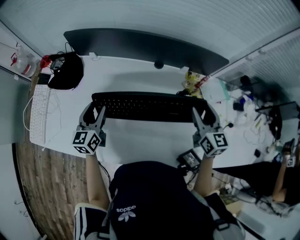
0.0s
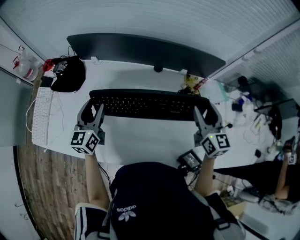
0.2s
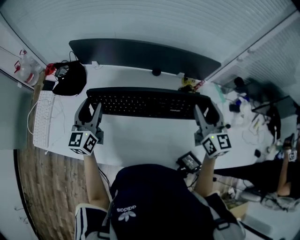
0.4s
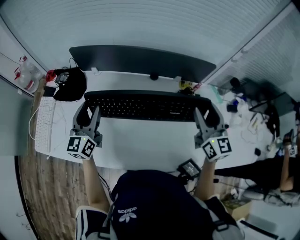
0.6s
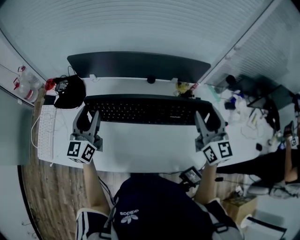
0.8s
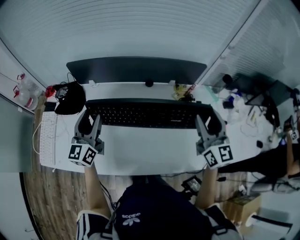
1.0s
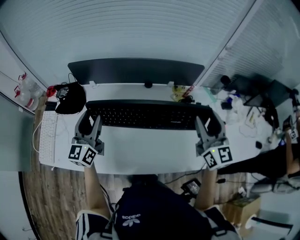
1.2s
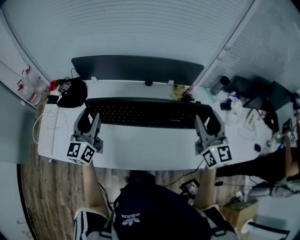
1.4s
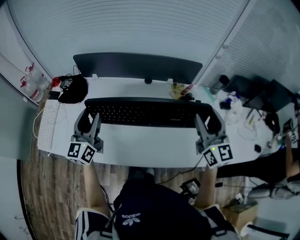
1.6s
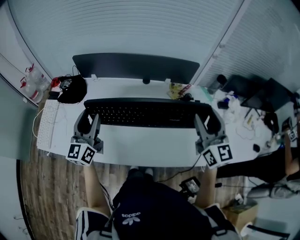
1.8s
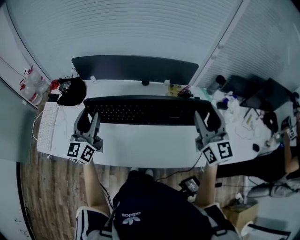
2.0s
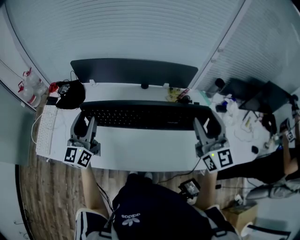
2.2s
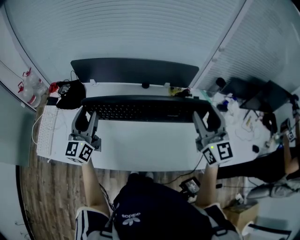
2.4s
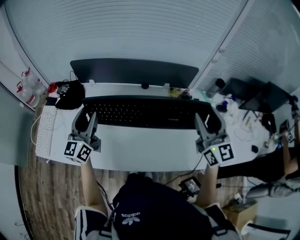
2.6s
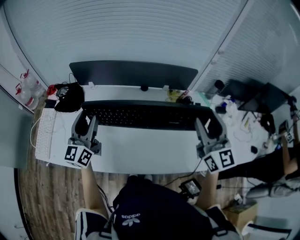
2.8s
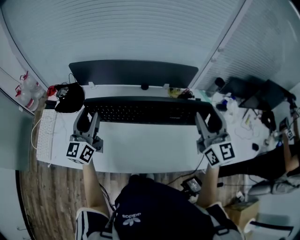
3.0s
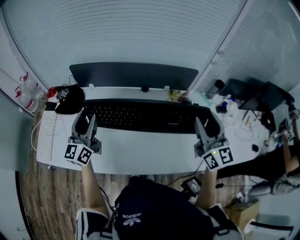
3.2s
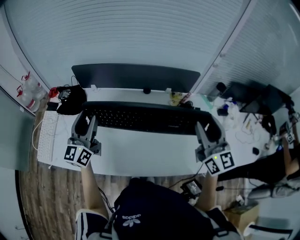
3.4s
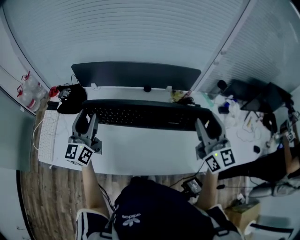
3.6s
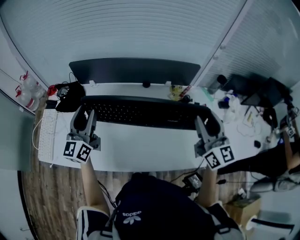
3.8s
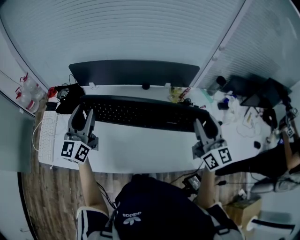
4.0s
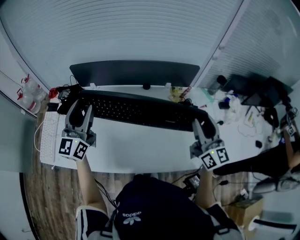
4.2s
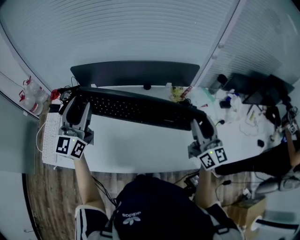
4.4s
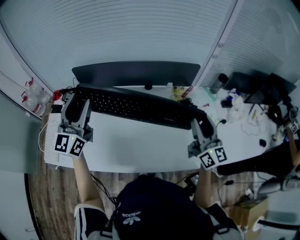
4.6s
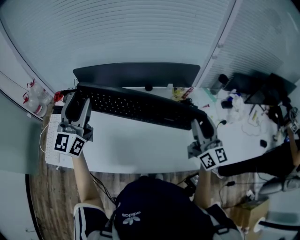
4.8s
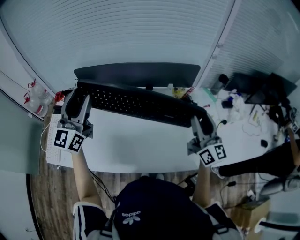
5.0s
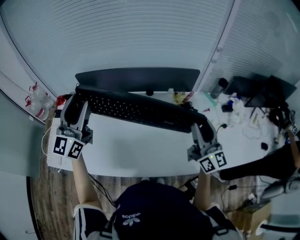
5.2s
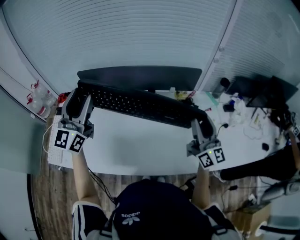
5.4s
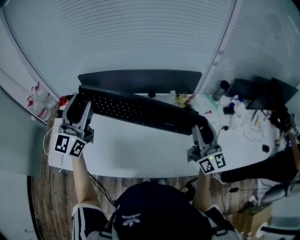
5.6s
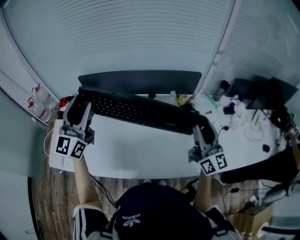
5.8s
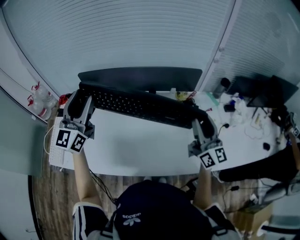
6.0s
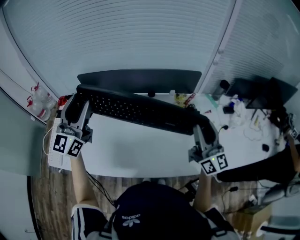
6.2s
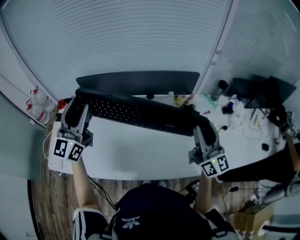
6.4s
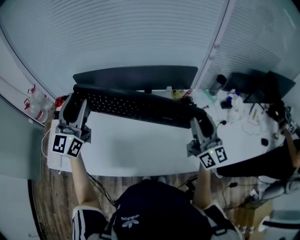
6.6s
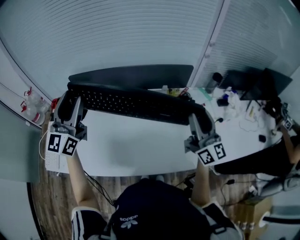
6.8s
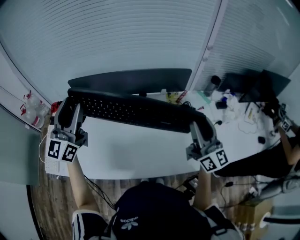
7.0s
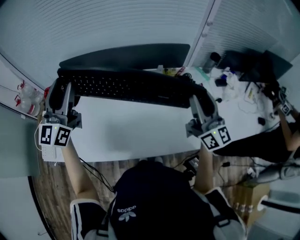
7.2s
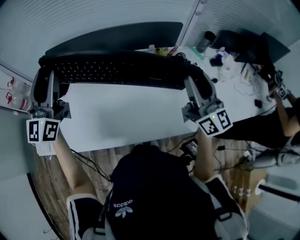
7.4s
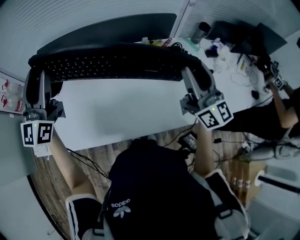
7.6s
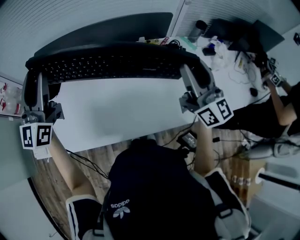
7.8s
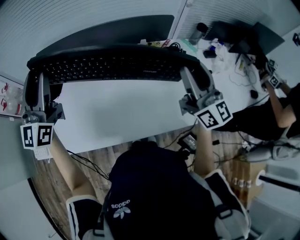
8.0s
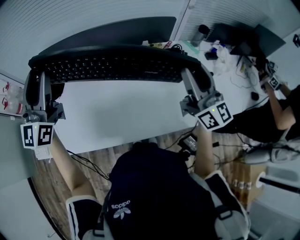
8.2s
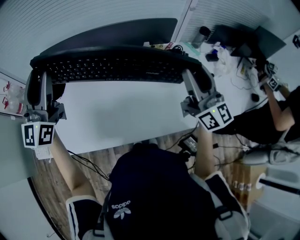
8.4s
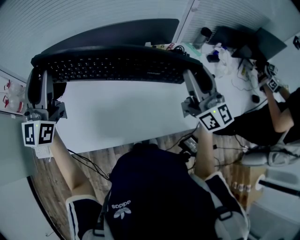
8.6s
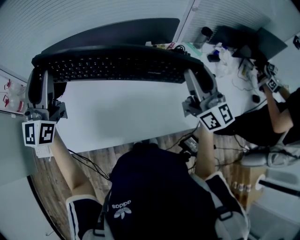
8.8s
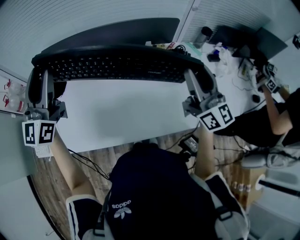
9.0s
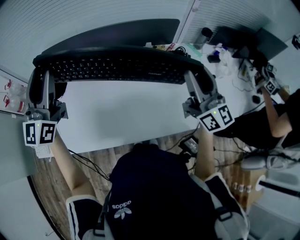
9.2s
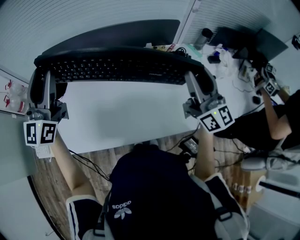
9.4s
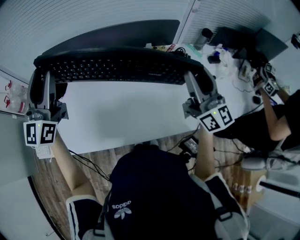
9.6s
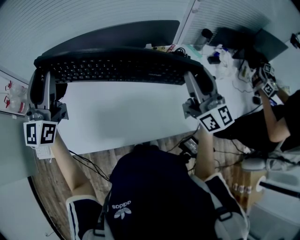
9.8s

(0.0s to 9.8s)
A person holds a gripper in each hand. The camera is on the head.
0.0s - 1.4s: The right gripper heads upward and backward, covering approximately 20 cm, and turns by approximately 20 degrees. Meanwhile the left gripper is displaced upward by about 15 cm, and swivels about 20 degrees.
1.4s - 2.8s: The grippers make only small movements.
2.8s - 4.2s: The left gripper travels upward by approximately 5 cm.
4.2s - 5.6s: The left gripper shifts about 10 cm upward.
5.6s - 8.4s: There are only small adjustments of the grippers.
8.4s - 9.8s: Both grippers stay put.

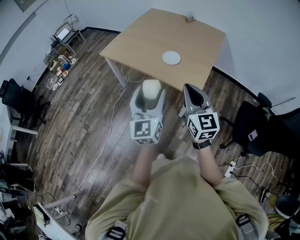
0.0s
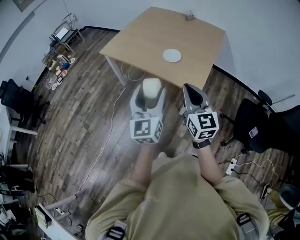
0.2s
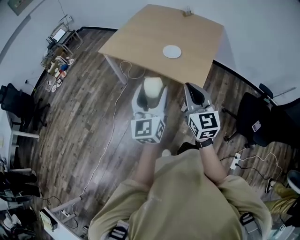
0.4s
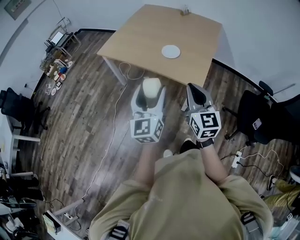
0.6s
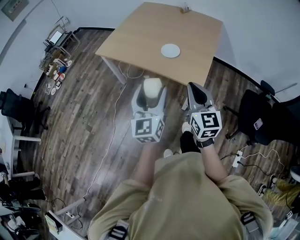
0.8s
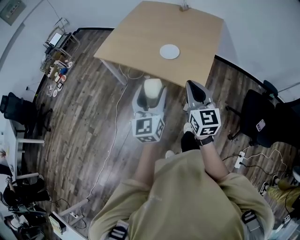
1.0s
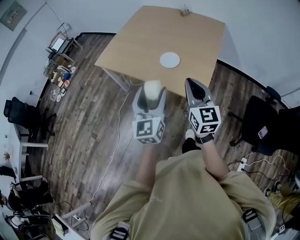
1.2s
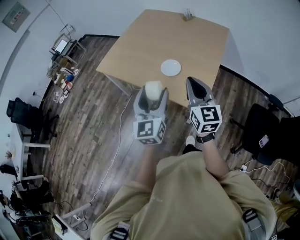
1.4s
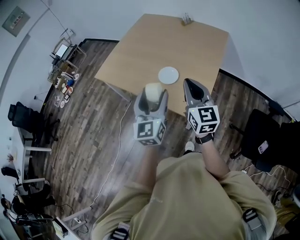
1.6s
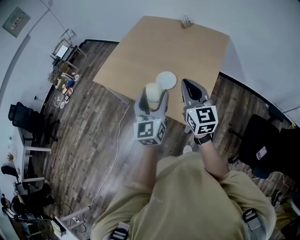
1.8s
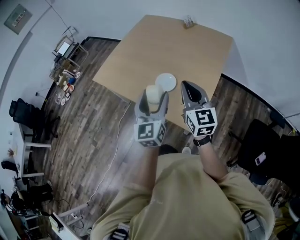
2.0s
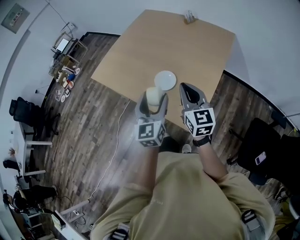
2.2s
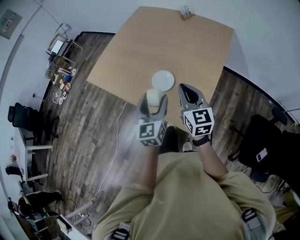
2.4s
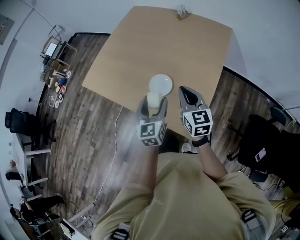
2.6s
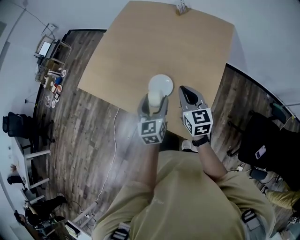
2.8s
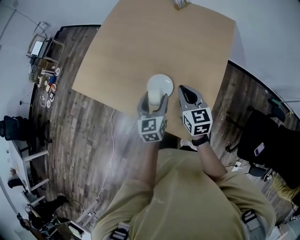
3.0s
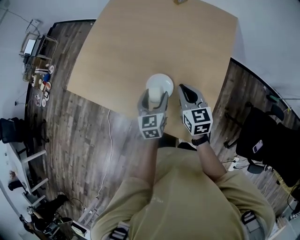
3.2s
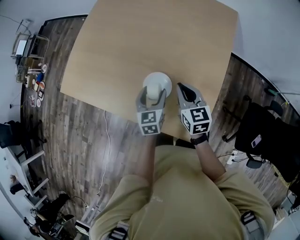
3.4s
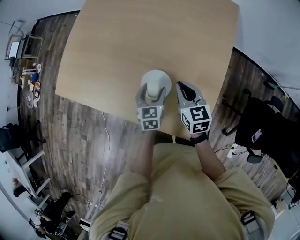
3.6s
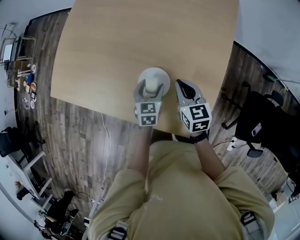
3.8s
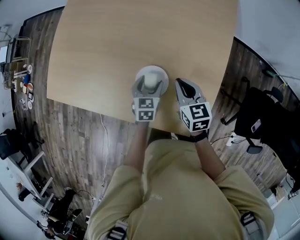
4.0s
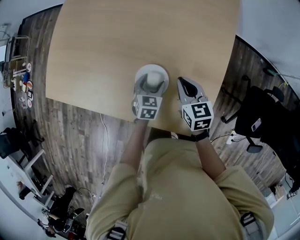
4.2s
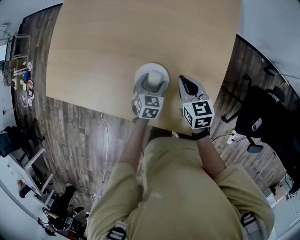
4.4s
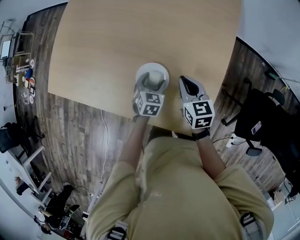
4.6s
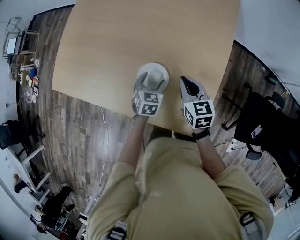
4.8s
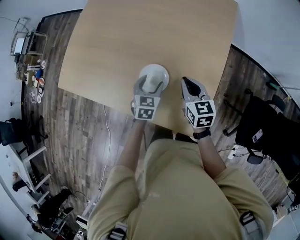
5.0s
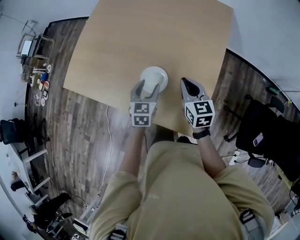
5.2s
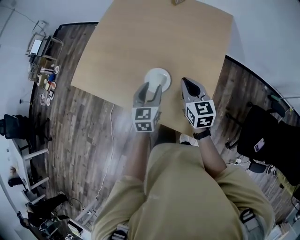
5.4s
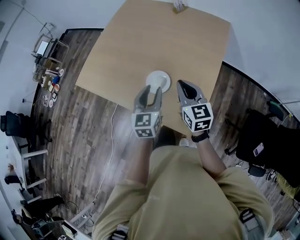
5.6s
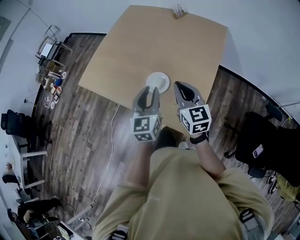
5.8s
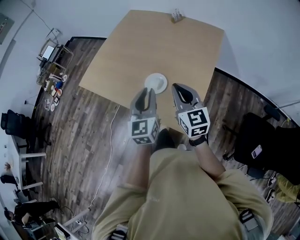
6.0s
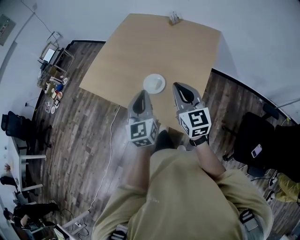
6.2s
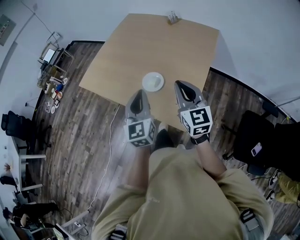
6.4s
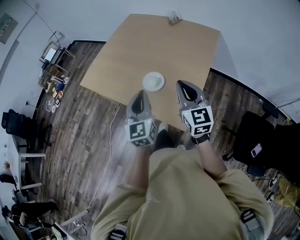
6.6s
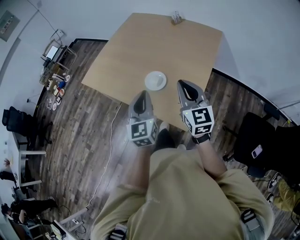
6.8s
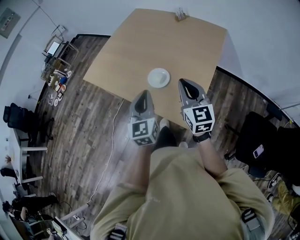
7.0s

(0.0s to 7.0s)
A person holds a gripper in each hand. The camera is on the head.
0.0s - 1.4s: The left gripper is displaced forward and to the right by about 20 cm; the right gripper moves forward, some 20 cm.
1.4s - 2.8s: The two grippers go approximately 30 cm forward and downward. The left gripper rotates approximately 20 degrees.
2.8s - 4.2s: The grippers both shift downward and forward by roughly 25 cm. The left gripper swivels some 40 degrees. Meanwhile the right gripper rotates roughly 20 degrees.
4.2s - 5.6s: Both grippers move upward and backward, roughly 25 cm. The right gripper swivels roughly 30 degrees; the left gripper angles its fingers upward, by some 30 degrees, and closes its fingers.
5.6s - 7.0s: The grippers both shift backward and upward by roughly 15 cm. The left gripper closes up.

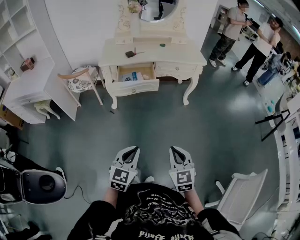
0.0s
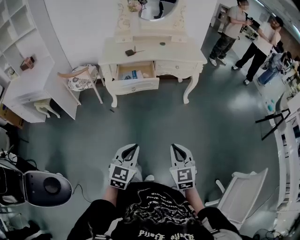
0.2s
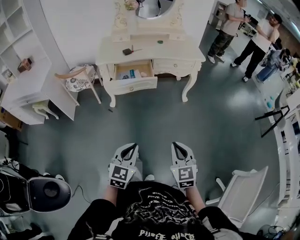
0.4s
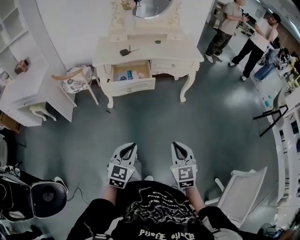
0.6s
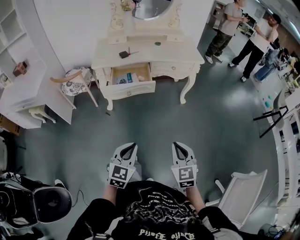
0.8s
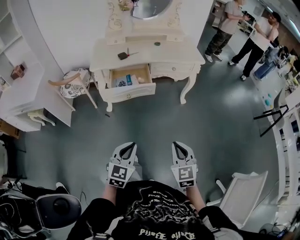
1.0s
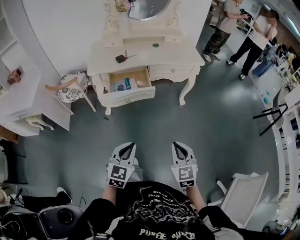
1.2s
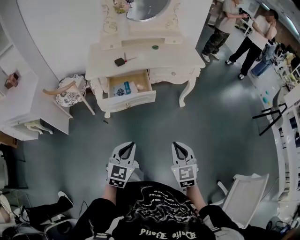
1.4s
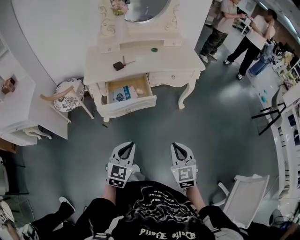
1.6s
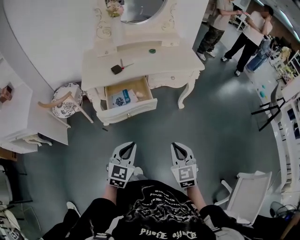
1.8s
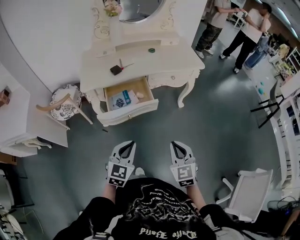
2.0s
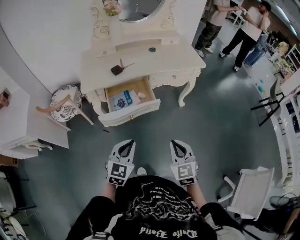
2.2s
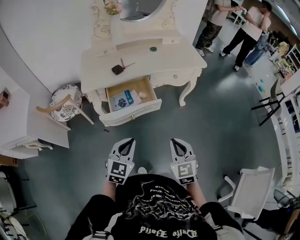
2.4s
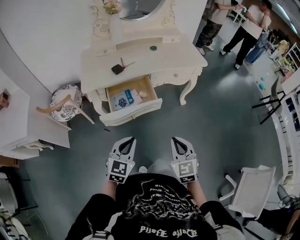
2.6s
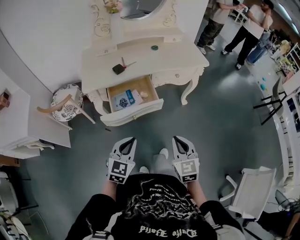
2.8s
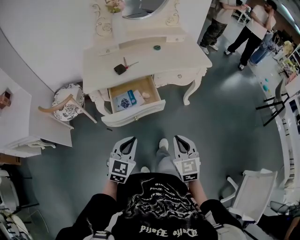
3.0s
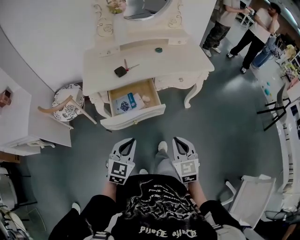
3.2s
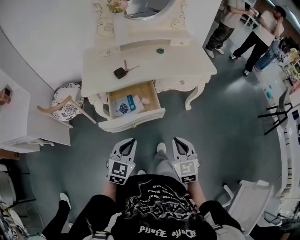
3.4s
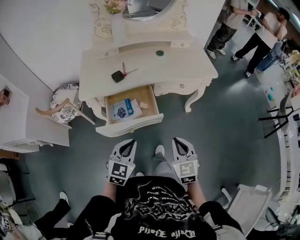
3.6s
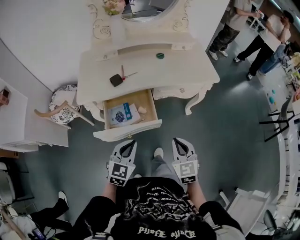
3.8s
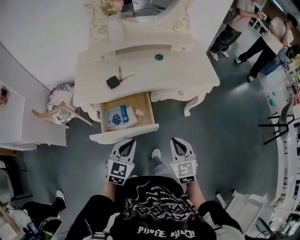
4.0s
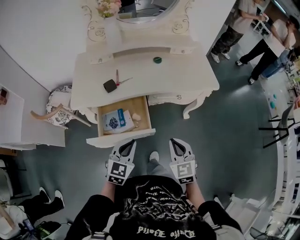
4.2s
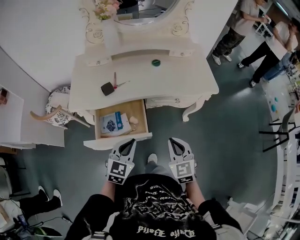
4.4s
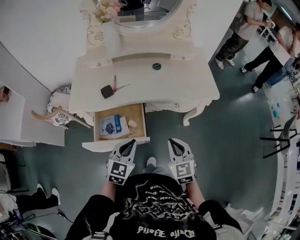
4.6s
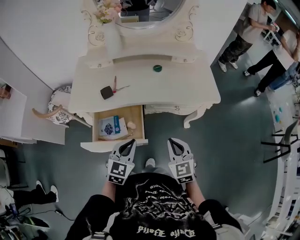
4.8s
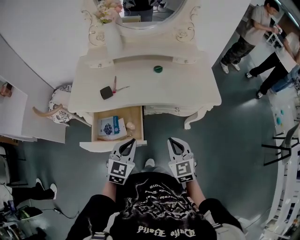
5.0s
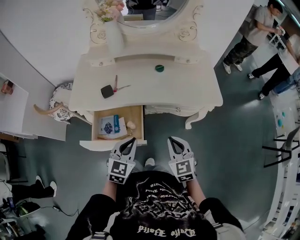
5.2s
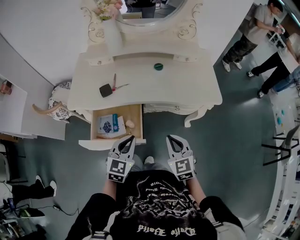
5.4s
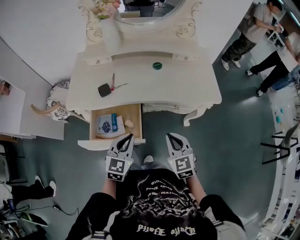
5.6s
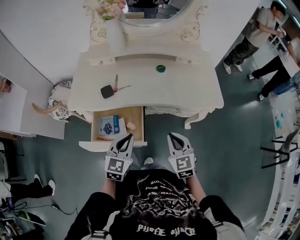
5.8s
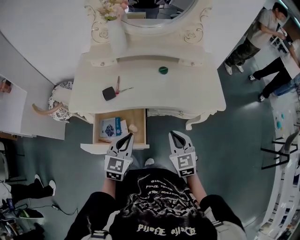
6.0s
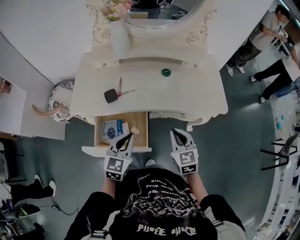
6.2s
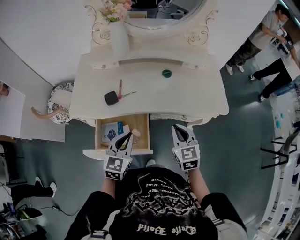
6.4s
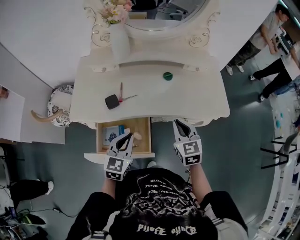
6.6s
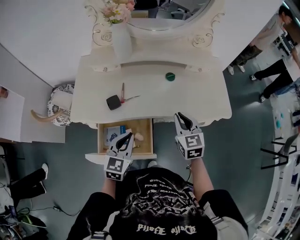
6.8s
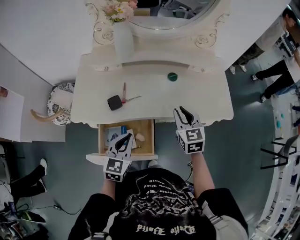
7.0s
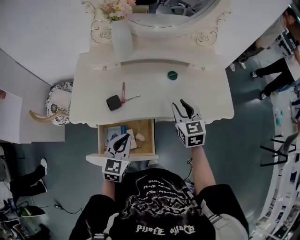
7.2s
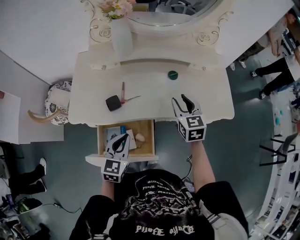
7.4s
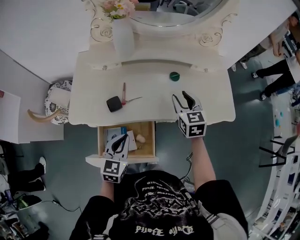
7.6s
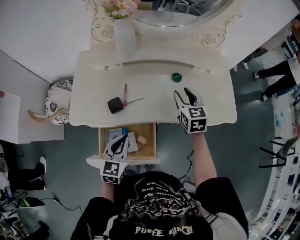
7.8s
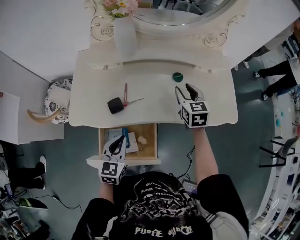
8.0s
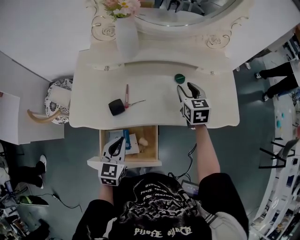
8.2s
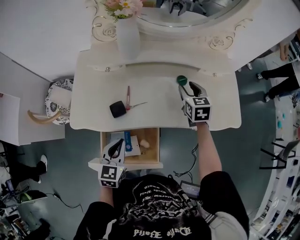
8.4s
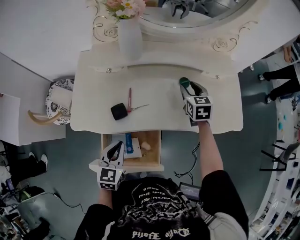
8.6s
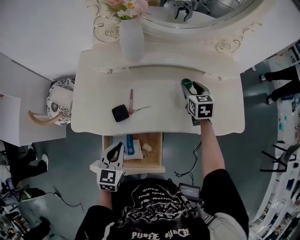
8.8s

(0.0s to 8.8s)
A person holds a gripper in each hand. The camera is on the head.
0.0s - 1.4s: Both grippers travel together forward, approximately 15 cm.
1.4s - 3.0s: The grippers both shift forward and to the left by about 15 cm.
3.0s - 4.4s: The left gripper is displaced forward and to the right by about 20 cm, while the right gripper travels forward by roughly 20 cm.
4.4s - 5.8s: The two grippers go about 5 cm forward.
5.8s - 7.4s: The right gripper goes about 25 cm forward, and opens up; the left gripper shifts about 10 cm forward and to the left.
7.4s - 8.8s: The right gripper heads forward and downward, covering approximately 15 cm, while the left gripper shifts approximately 5 cm to the left.
